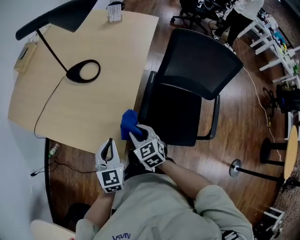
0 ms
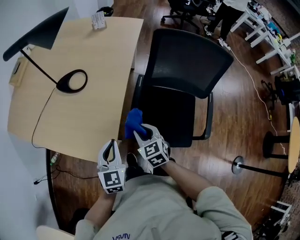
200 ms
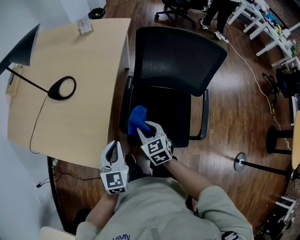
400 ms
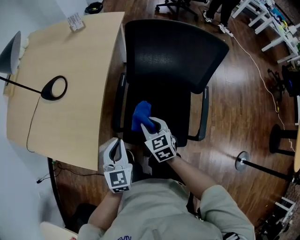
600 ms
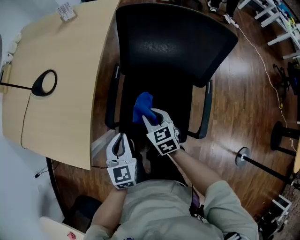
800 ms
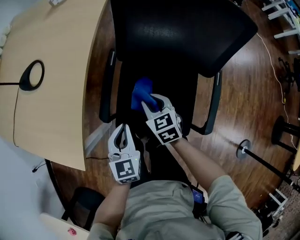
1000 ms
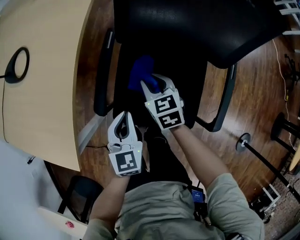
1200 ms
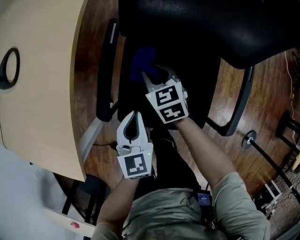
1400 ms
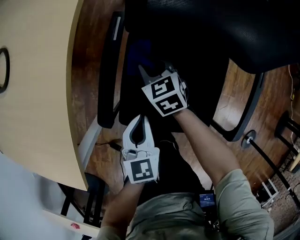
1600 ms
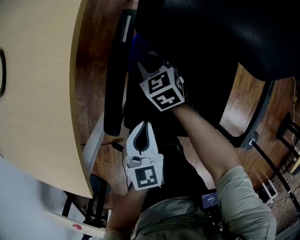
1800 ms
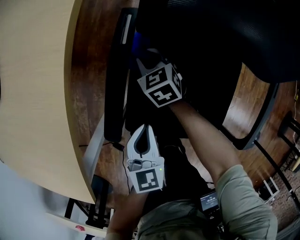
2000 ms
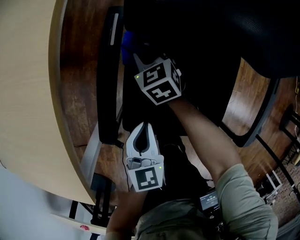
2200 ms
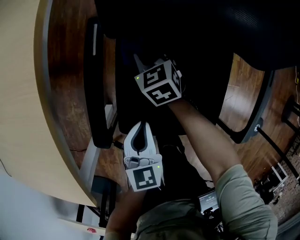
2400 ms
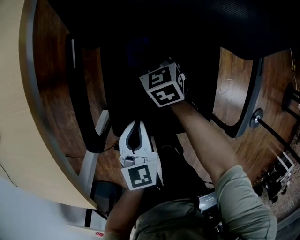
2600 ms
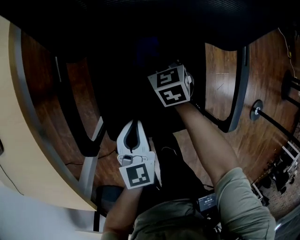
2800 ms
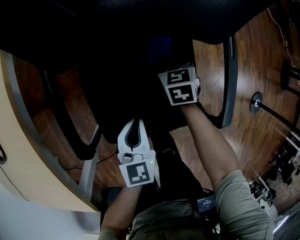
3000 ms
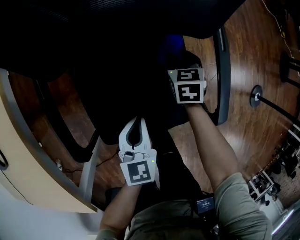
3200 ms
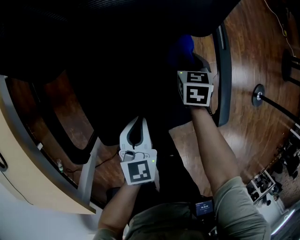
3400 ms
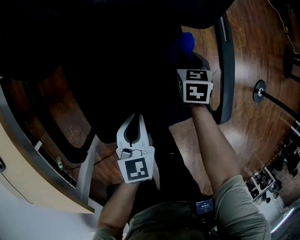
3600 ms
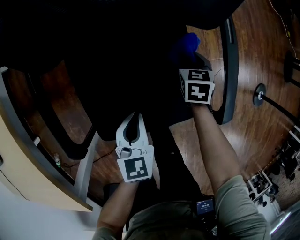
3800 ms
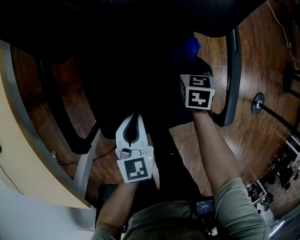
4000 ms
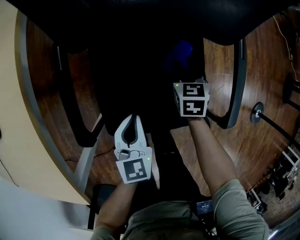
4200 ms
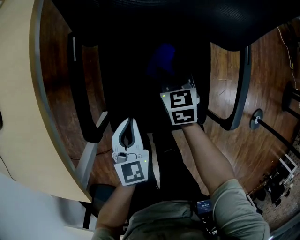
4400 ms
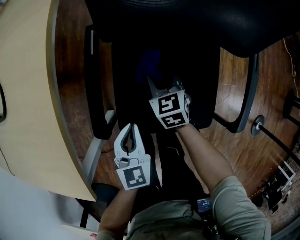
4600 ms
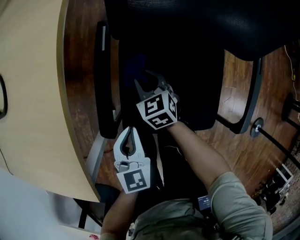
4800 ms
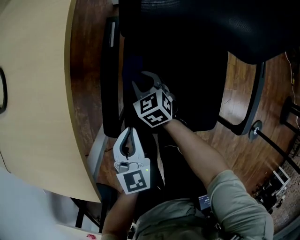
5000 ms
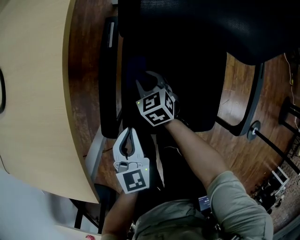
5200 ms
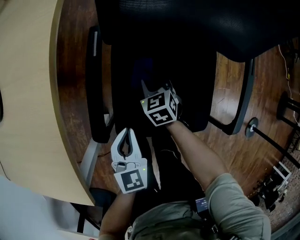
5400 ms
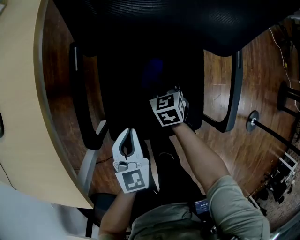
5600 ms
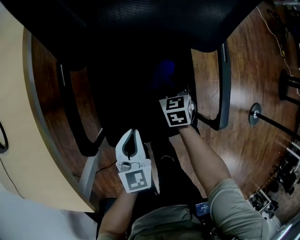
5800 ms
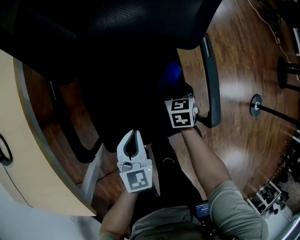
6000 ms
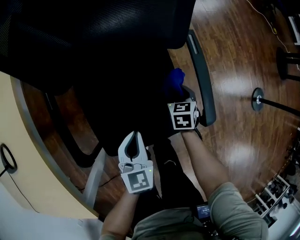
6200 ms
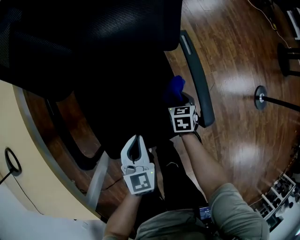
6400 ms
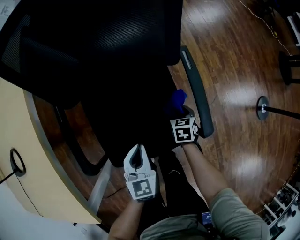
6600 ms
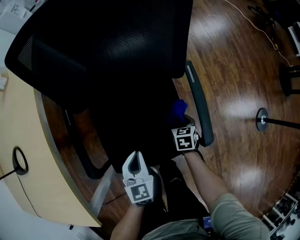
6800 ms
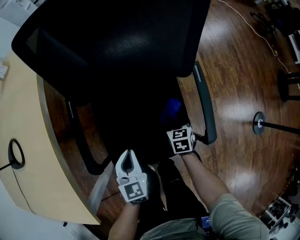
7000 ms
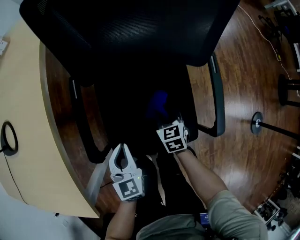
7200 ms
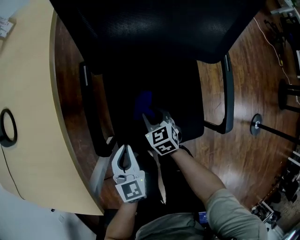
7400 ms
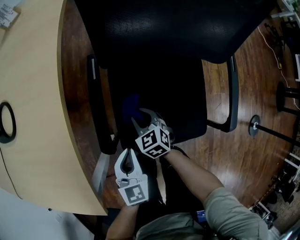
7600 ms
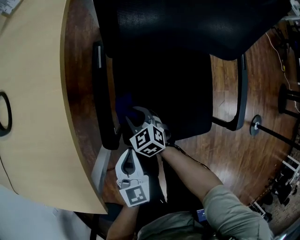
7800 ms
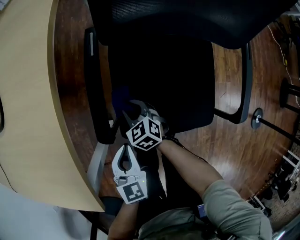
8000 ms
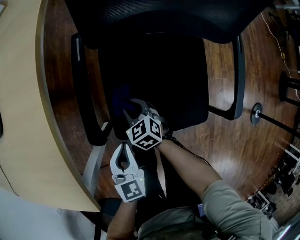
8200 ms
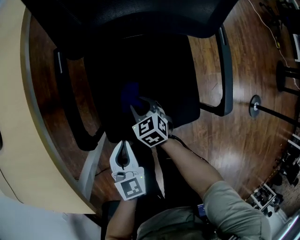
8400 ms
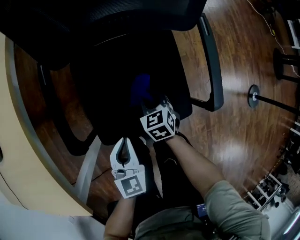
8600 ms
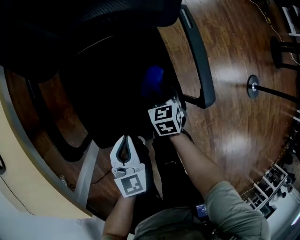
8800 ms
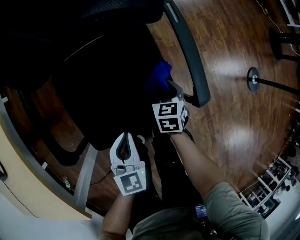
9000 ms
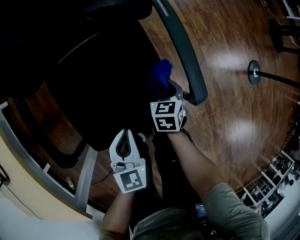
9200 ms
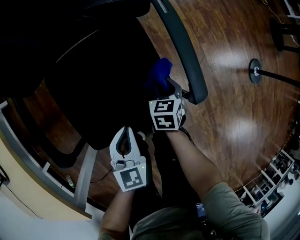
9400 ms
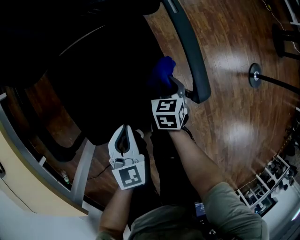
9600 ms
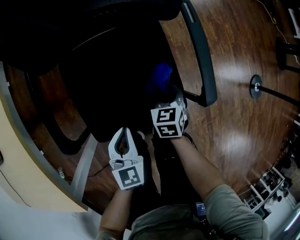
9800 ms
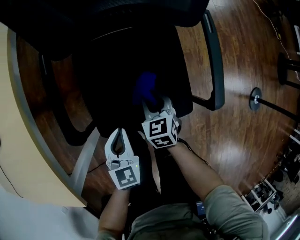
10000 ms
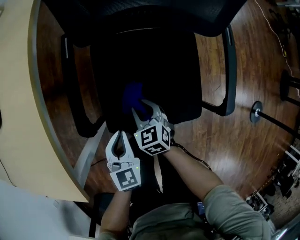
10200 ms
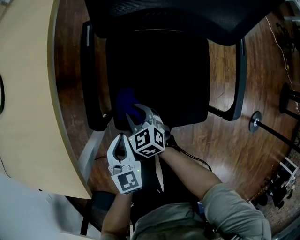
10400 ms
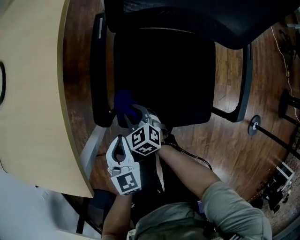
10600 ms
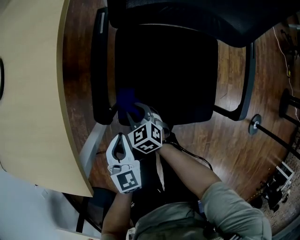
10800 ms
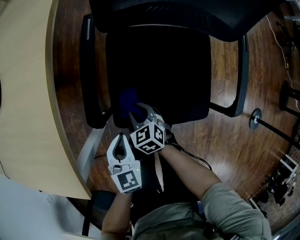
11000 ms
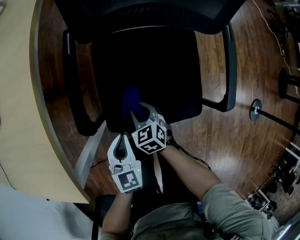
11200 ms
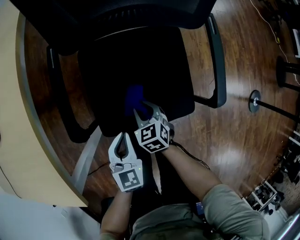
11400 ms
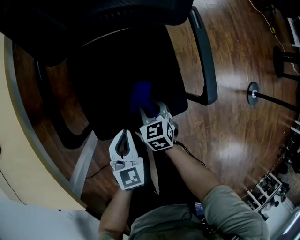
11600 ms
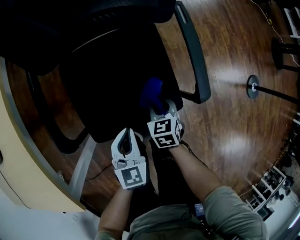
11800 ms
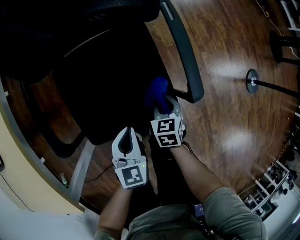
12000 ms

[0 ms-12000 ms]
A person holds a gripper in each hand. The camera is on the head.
0 ms to 1600 ms: The right gripper heads downward, to the right and forward, covering roughly 40 cm, while the left gripper heads to the right and downward, covering roughly 40 cm.
1600 ms to 3000 ms: The right gripper moves about 30 cm, and swivels roughly 40 degrees. The left gripper changes place by some 15 cm, and rotates about 20 degrees.
3000 ms to 4400 ms: The left gripper shifts by roughly 10 cm; the right gripper ends up some 10 cm from where it was.
4400 ms to 6000 ms: The right gripper changes place by some 15 cm, and rotates roughly 20 degrees. The left gripper ends up approximately 10 cm from where it was.
6000 ms to 7600 ms: The right gripper changes place by some 30 cm, and swivels some 40 degrees; the left gripper moves approximately 15 cm.
7600 ms to 9000 ms: The left gripper moves about 20 cm, and rotates some 20 degrees; the right gripper moves roughly 35 cm, and rotates approximately 50 degrees.
9000 ms to 10400 ms: The right gripper ends up some 35 cm from where it was, and swivels roughly 50 degrees, while the left gripper ends up roughly 20 cm from where it was, and changes its angle by some 20 degrees.
10400 ms to 12000 ms: The right gripper moves about 30 cm, and changes its angle by roughly 40 degrees. Meanwhile the left gripper changes place by some 20 cm, and turns by about 30 degrees.

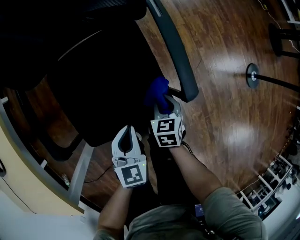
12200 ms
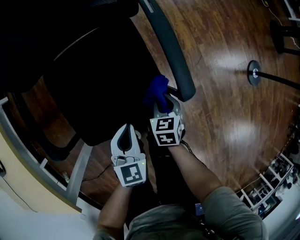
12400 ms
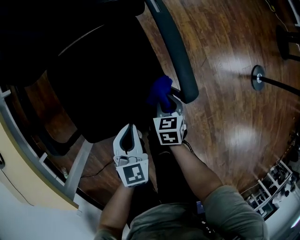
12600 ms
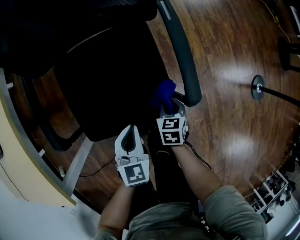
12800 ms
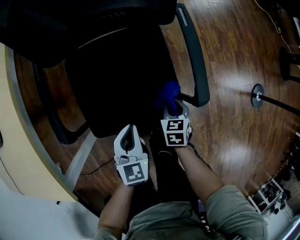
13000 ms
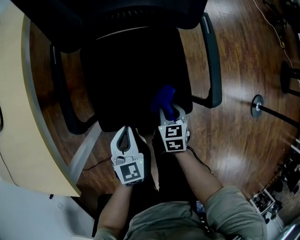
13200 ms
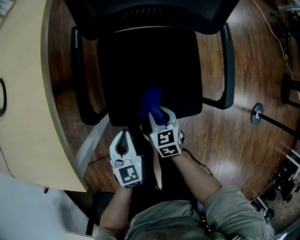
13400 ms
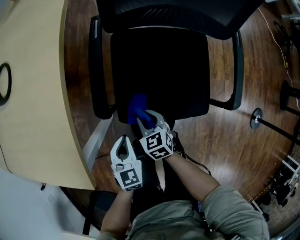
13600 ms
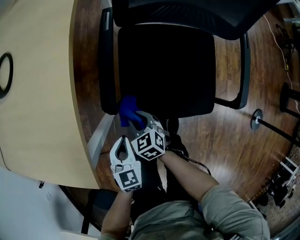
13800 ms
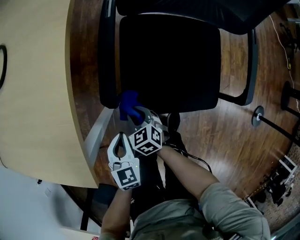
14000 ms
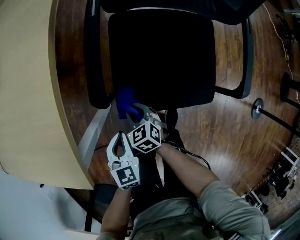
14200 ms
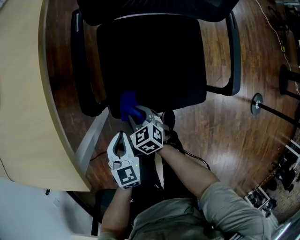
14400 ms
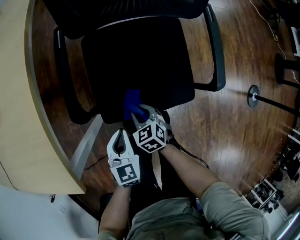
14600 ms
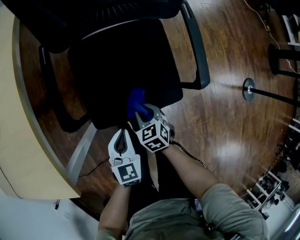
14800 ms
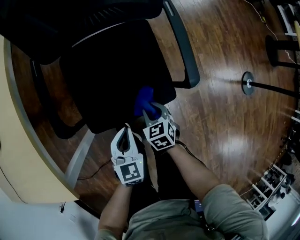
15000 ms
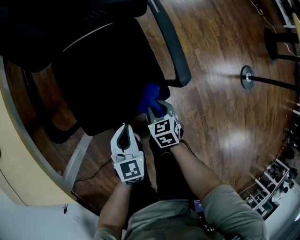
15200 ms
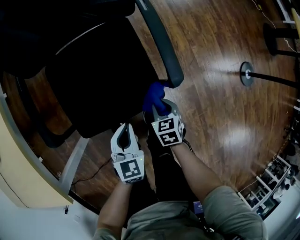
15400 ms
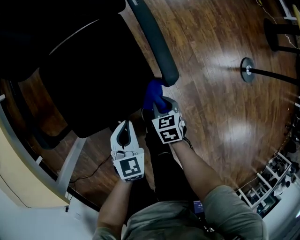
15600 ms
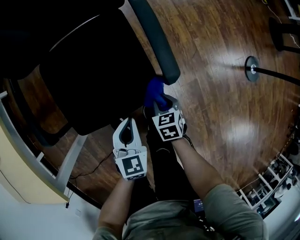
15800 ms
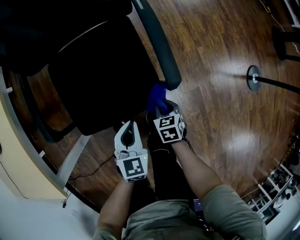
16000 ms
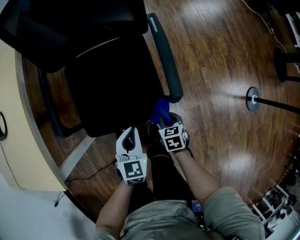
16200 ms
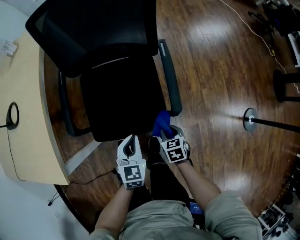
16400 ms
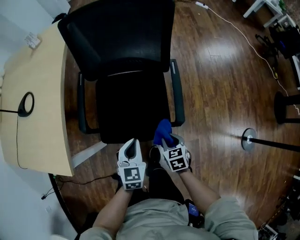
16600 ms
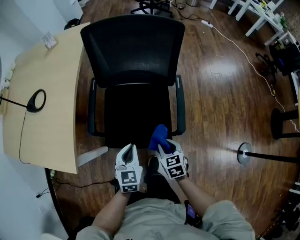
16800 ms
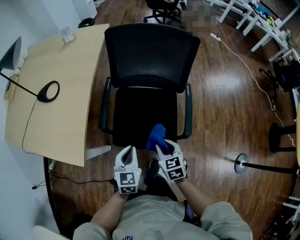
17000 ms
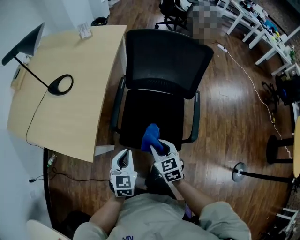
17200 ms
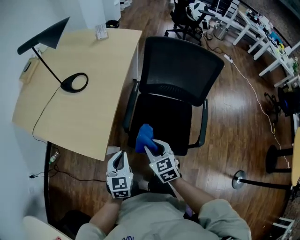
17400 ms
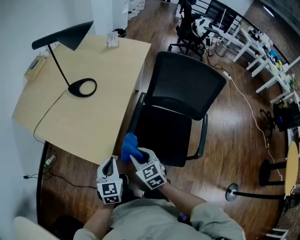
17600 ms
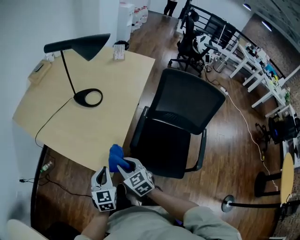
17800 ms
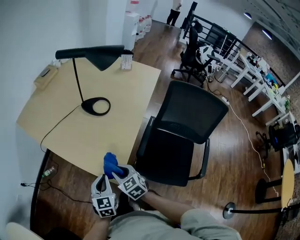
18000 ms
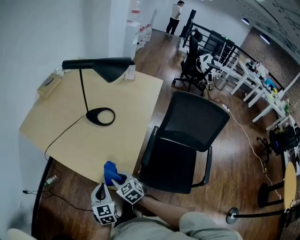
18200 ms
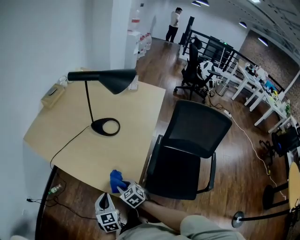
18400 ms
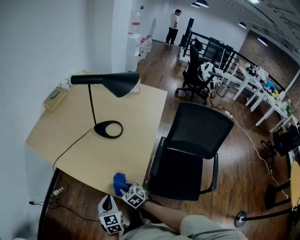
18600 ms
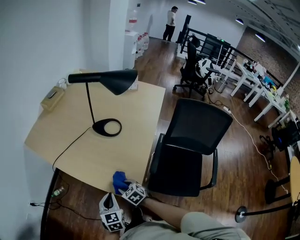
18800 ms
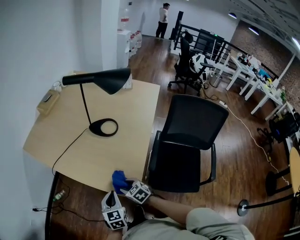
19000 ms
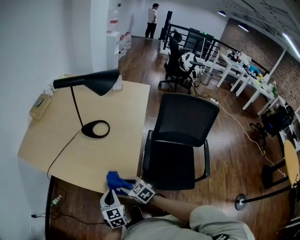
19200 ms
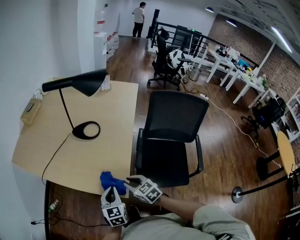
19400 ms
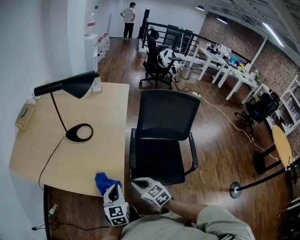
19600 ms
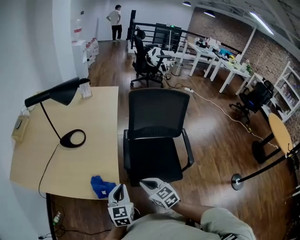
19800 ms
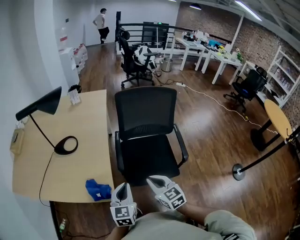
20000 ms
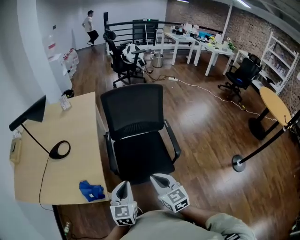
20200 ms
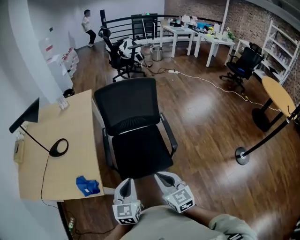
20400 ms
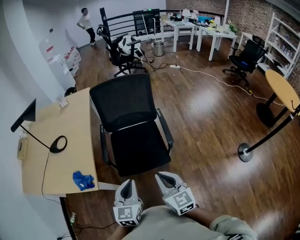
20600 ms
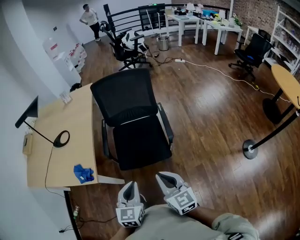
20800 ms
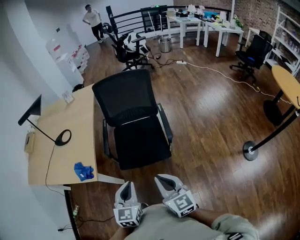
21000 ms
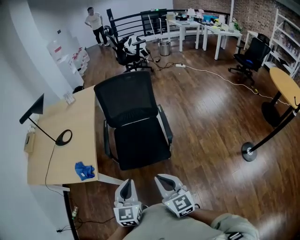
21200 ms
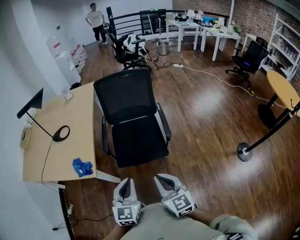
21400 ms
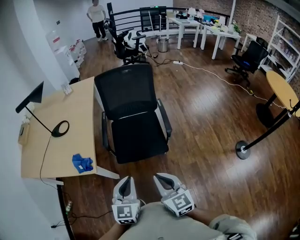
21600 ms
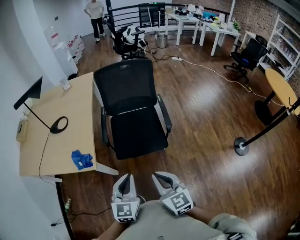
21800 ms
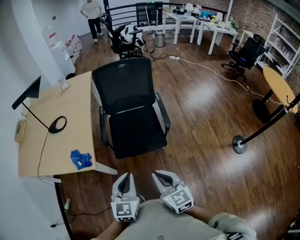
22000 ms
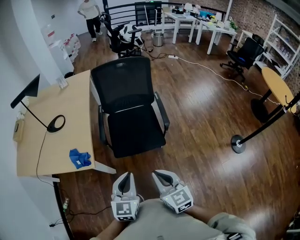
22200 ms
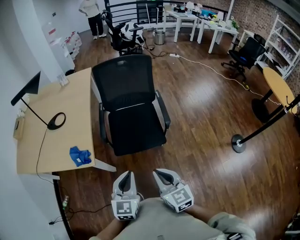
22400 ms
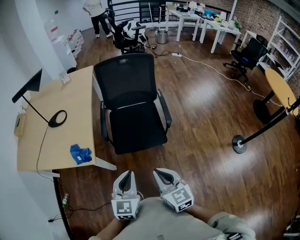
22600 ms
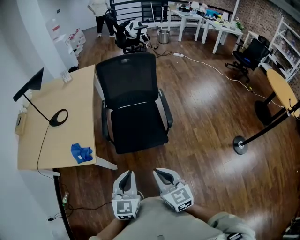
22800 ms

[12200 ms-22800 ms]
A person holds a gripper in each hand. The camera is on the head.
12200 ms to 13800 ms: The right gripper ends up approximately 40 cm from where it was, and changes its angle by about 50 degrees. Meanwhile the left gripper moves approximately 30 cm, and changes its angle by approximately 30 degrees.
13800 ms to 15200 ms: The right gripper ends up about 35 cm from where it was, and rotates some 40 degrees; the left gripper moves about 25 cm, and swivels about 30 degrees.
15200 ms to 16800 ms: Both grippers travel together upward, some 20 cm. The right gripper swivels some 20 degrees.
16800 ms to 18200 ms: Both grippers are carried about 50 cm. The left gripper turns by about 30 degrees. Meanwhile the right gripper rotates roughly 50 degrees.
18200 ms to 19800 ms: The left gripper ends up about 20 cm from where it was, and rotates about 30 degrees; the right gripper moves roughly 20 cm, changes its angle by roughly 30 degrees, and closes.
19800 ms to 21200 ms: Both grippers move to the right and backward, some 35 cm. The right gripper turns by approximately 30 degrees.
21200 ms to 22800 ms: Both grippers travel together to the left, roughly 5 cm.

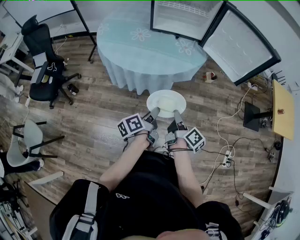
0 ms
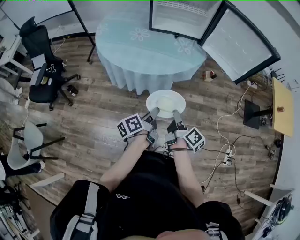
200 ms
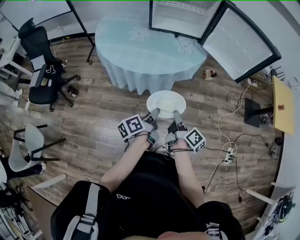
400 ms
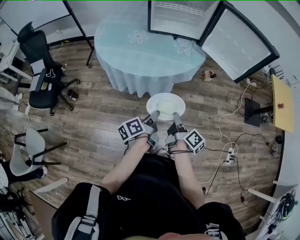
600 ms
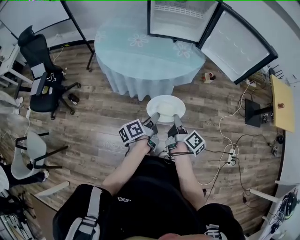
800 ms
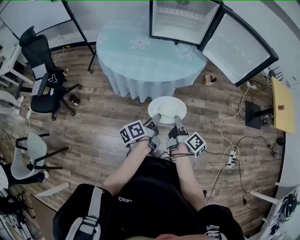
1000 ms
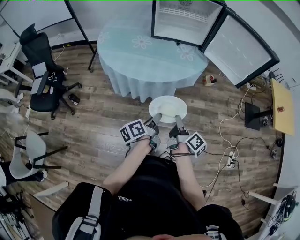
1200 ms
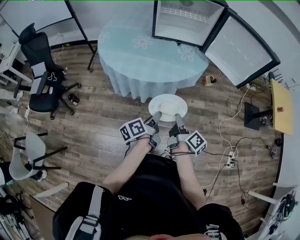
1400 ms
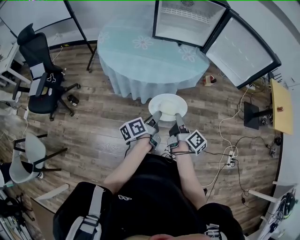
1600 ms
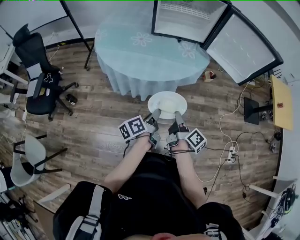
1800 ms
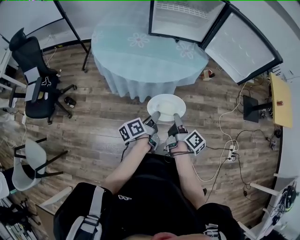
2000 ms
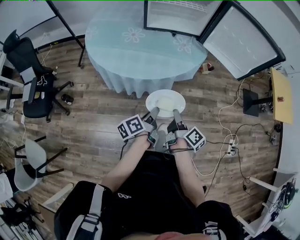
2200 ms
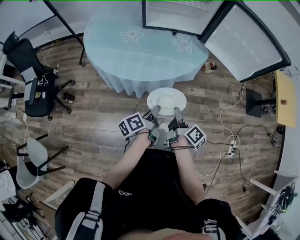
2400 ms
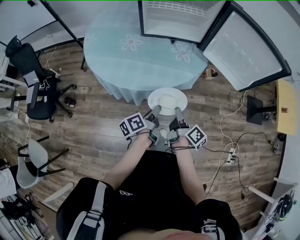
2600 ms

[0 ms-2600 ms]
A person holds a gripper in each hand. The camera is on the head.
0 ms to 1200 ms: There are only small adjustments of the grippers.
1200 ms to 2600 ms: The two grippers go about 15 cm forward.
